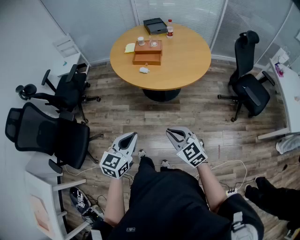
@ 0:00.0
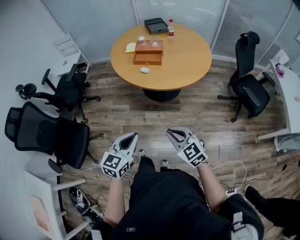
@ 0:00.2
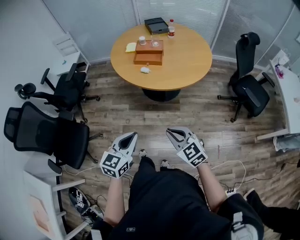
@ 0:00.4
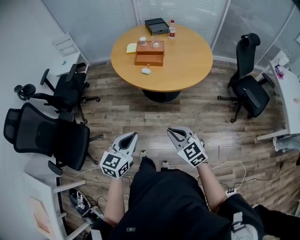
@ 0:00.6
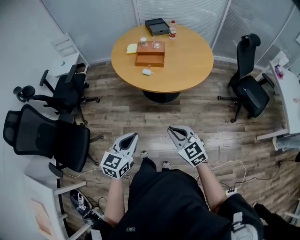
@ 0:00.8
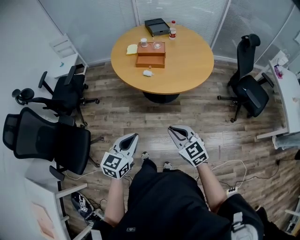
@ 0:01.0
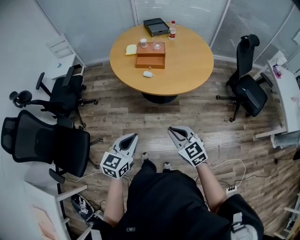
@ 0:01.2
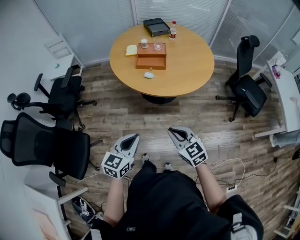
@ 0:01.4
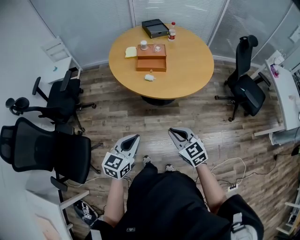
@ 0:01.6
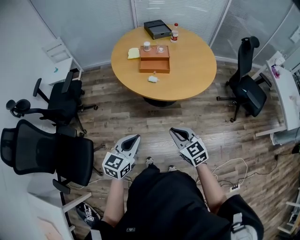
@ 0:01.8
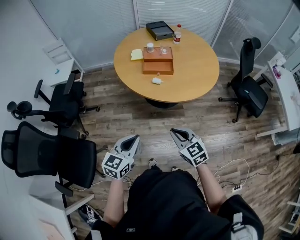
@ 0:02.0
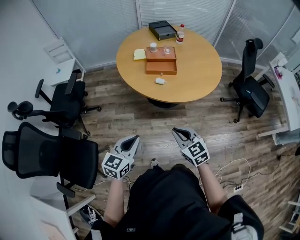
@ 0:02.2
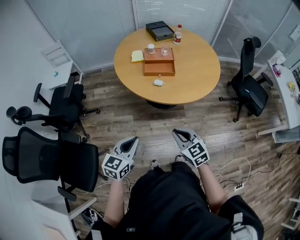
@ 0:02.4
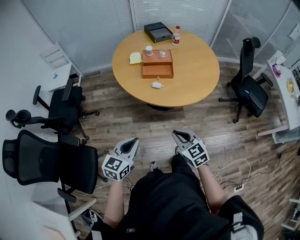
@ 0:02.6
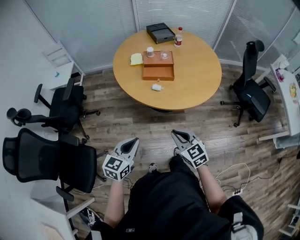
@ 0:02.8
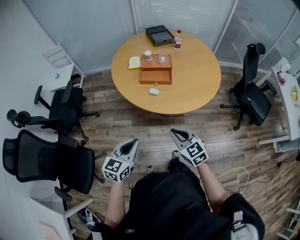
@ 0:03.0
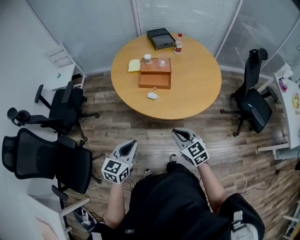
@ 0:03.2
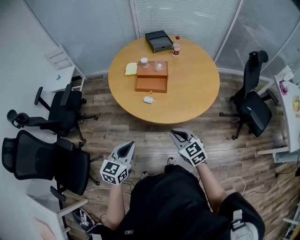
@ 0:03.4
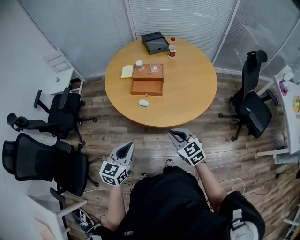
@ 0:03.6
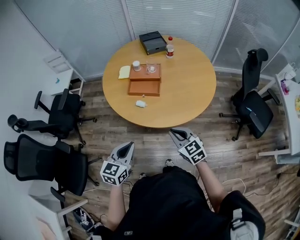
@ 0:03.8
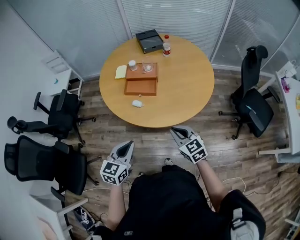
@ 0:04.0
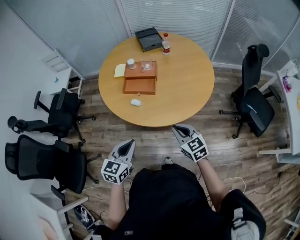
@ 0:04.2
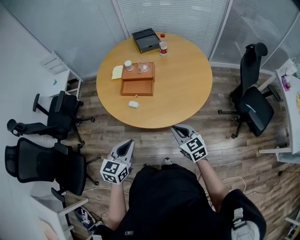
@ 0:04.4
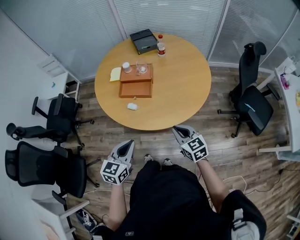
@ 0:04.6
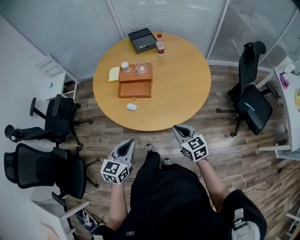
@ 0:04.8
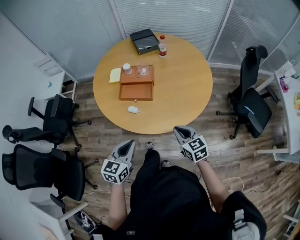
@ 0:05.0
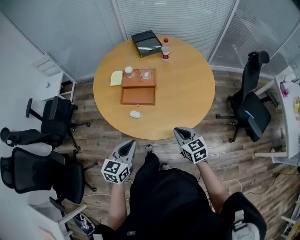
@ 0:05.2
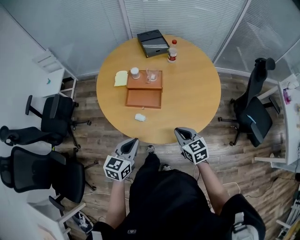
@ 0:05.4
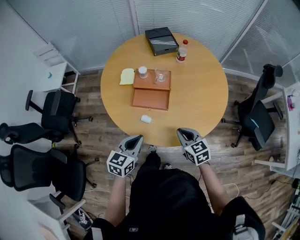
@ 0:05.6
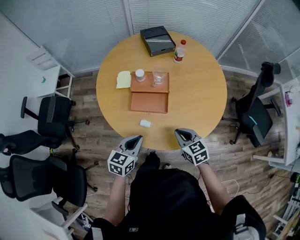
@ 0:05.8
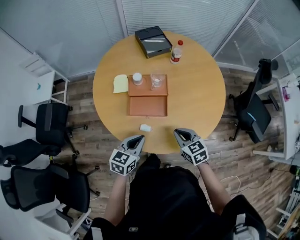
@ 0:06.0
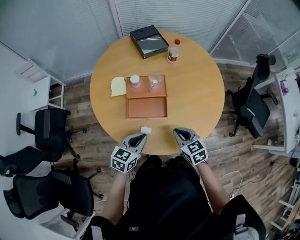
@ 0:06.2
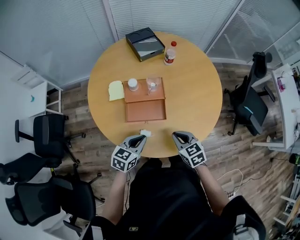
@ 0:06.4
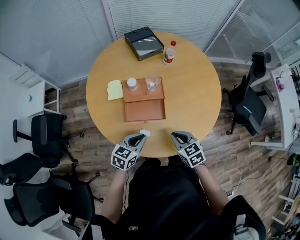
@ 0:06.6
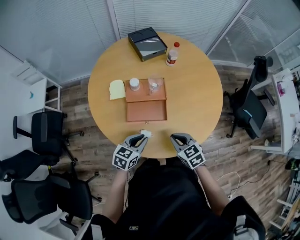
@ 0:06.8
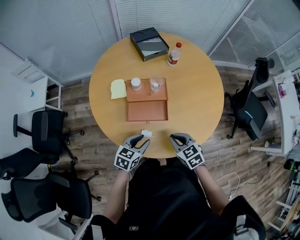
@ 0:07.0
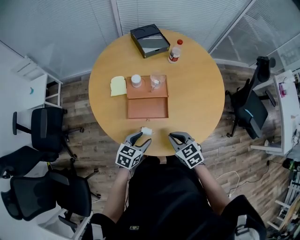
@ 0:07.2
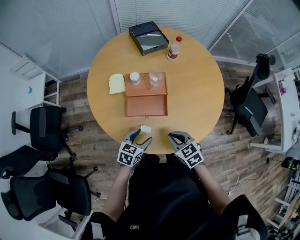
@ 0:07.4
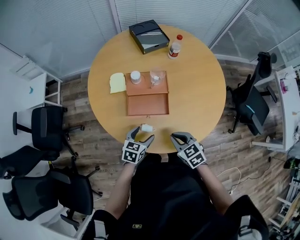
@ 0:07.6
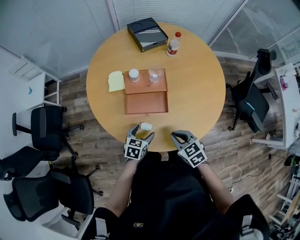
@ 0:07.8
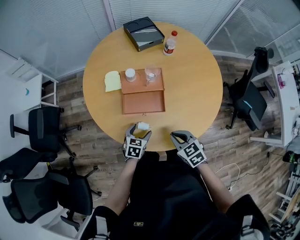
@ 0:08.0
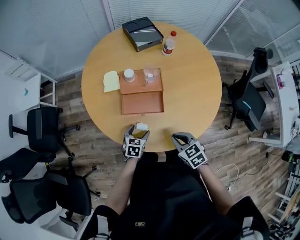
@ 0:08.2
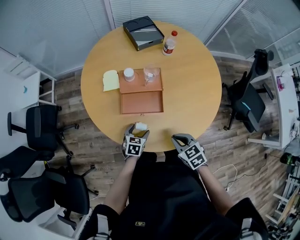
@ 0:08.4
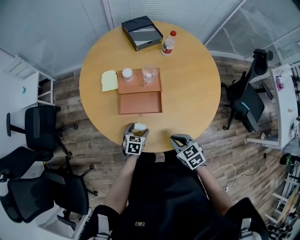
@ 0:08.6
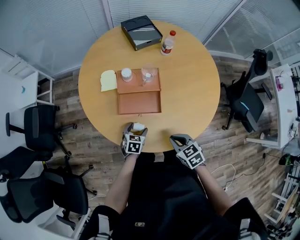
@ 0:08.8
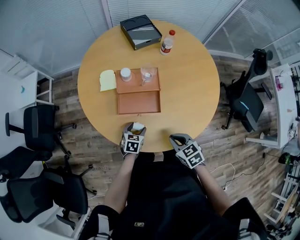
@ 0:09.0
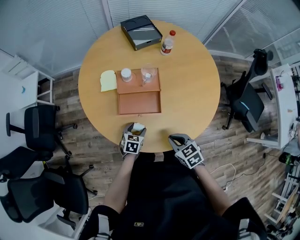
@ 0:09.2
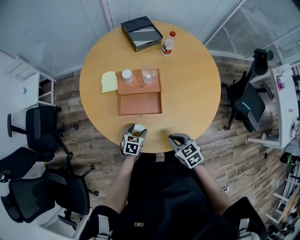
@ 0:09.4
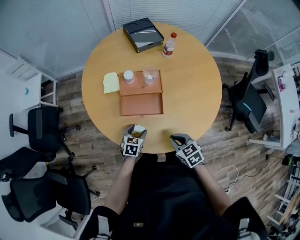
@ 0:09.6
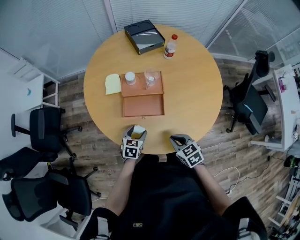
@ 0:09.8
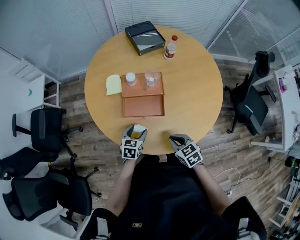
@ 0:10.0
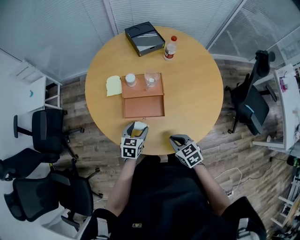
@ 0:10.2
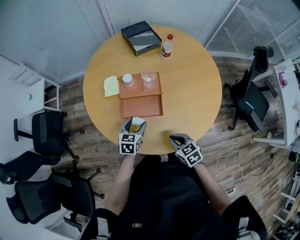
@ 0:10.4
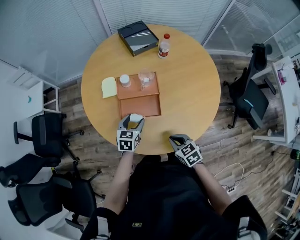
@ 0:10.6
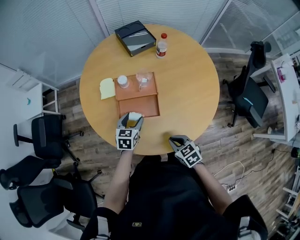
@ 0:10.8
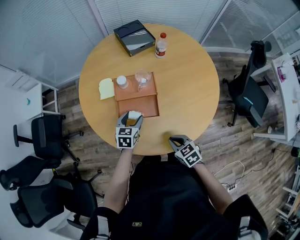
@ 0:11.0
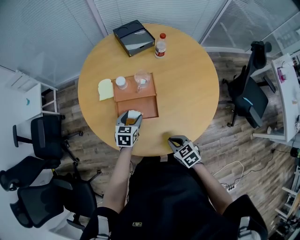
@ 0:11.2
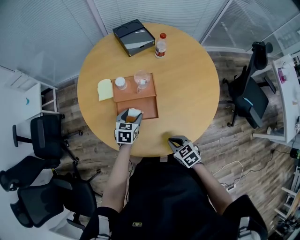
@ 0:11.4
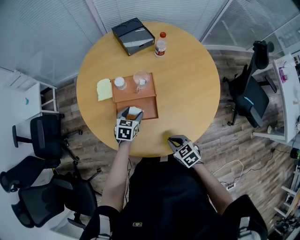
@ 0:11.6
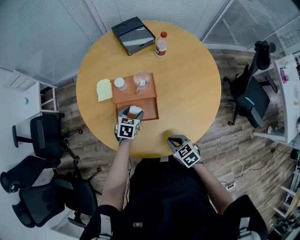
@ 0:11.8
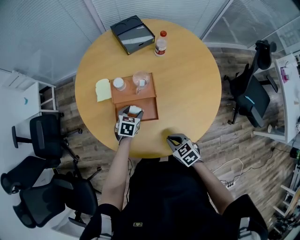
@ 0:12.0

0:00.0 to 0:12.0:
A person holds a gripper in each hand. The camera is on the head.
0:00.0 to 0:01.6: The grippers both shift forward and to the left by roughly 15 cm.
0:01.6 to 0:03.0: Both grippers move forward, about 10 cm.
0:03.0 to 0:04.4: The two grippers go some 20 cm to the right and forward.
0:04.4 to 0:06.0: The left gripper goes some 25 cm forward; the right gripper heads forward and to the left, covering about 20 cm.
0:06.0 to 0:07.6: The right gripper ends up approximately 5 cm from where it was. The left gripper is displaced downward by about 10 cm, and opens its fingers.
0:07.6 to 0:09.0: The left gripper travels downward by some 10 cm.
0:09.0 to 0:10.4: The left gripper travels upward by some 10 cm.
0:10.4 to 0:12.0: The left gripper shifts approximately 10 cm forward and downward.

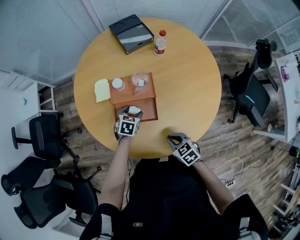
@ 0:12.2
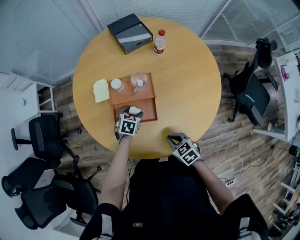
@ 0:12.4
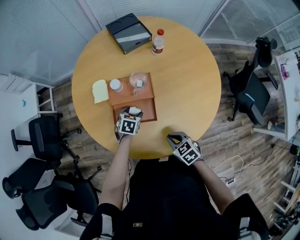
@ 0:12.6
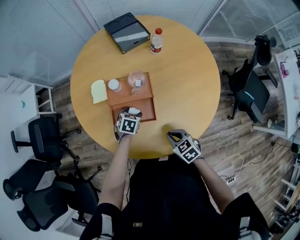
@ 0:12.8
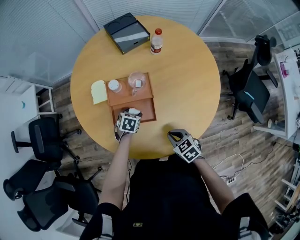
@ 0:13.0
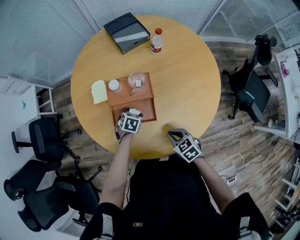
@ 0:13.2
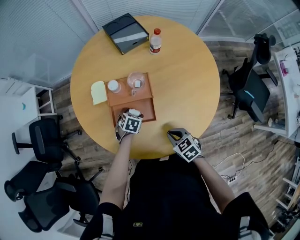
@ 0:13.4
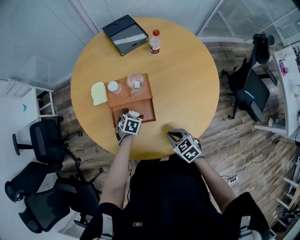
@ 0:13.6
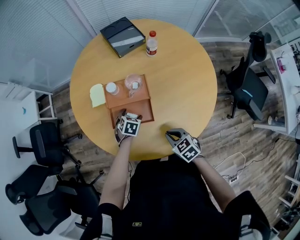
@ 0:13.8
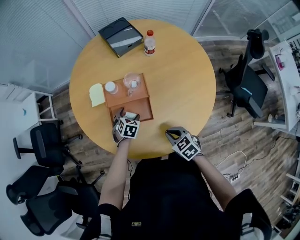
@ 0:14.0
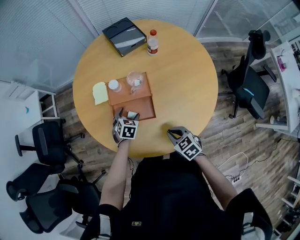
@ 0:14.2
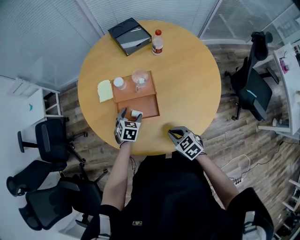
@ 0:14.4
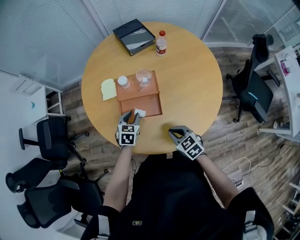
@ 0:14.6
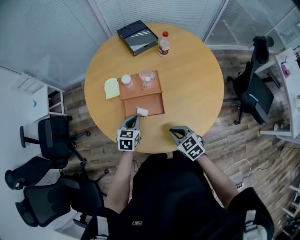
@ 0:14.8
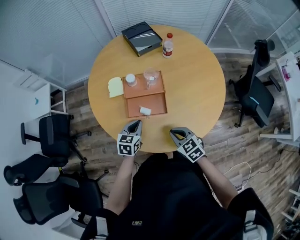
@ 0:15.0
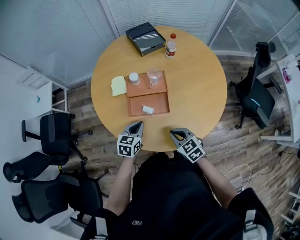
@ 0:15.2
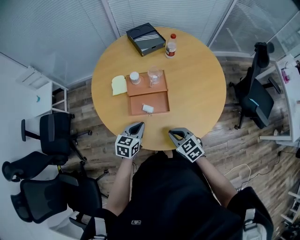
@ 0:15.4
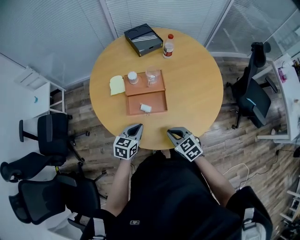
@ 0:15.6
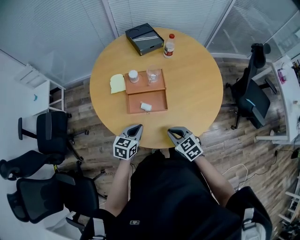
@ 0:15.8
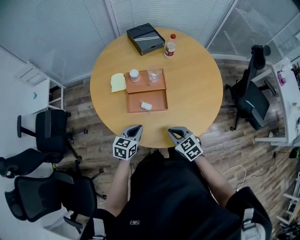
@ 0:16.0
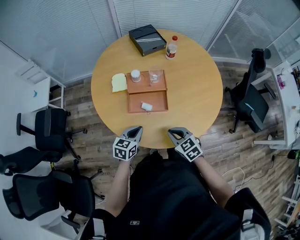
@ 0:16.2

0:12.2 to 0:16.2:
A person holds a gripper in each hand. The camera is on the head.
0:12.2 to 0:13.6: The grippers move only a little.
0:13.6 to 0:14.8: The left gripper is displaced upward, to the left and backward by roughly 15 cm, turns by about 30 degrees, and closes up. Meanwhile the right gripper moves approximately 5 cm.
0:14.8 to 0:16.2: The right gripper shifts by roughly 5 cm, while the left gripper is displaced backward by roughly 10 cm.

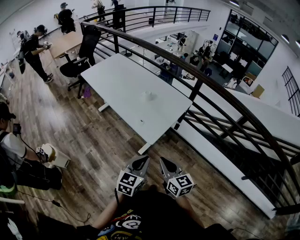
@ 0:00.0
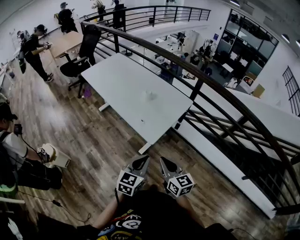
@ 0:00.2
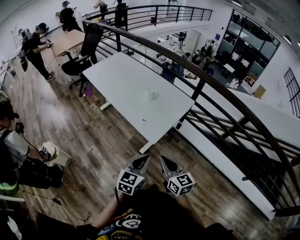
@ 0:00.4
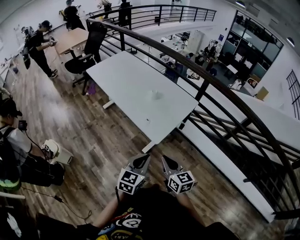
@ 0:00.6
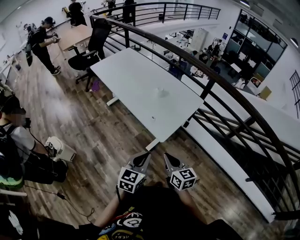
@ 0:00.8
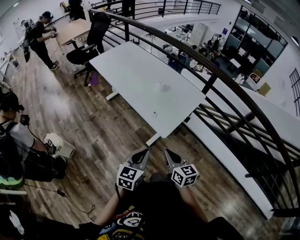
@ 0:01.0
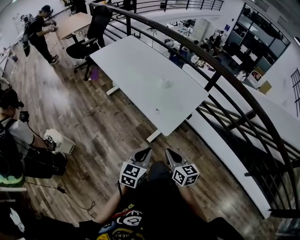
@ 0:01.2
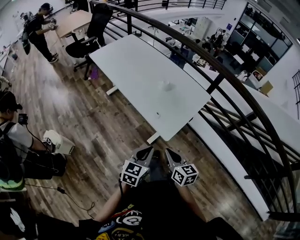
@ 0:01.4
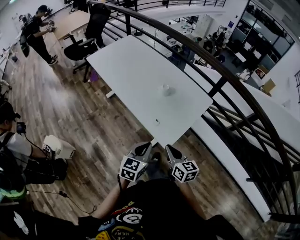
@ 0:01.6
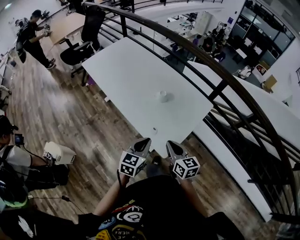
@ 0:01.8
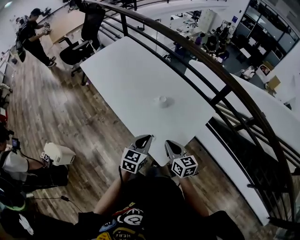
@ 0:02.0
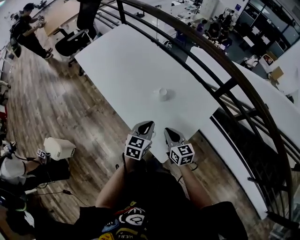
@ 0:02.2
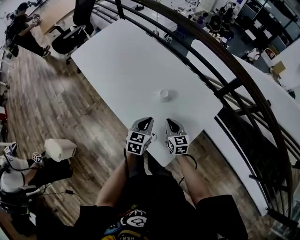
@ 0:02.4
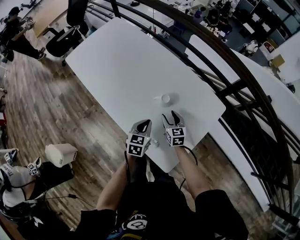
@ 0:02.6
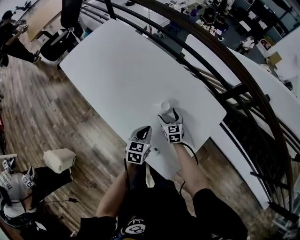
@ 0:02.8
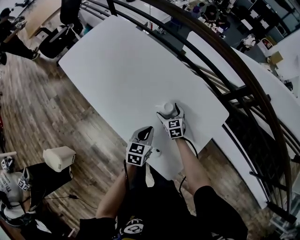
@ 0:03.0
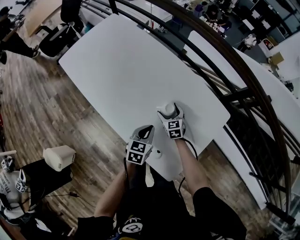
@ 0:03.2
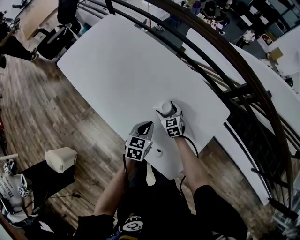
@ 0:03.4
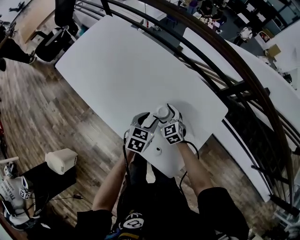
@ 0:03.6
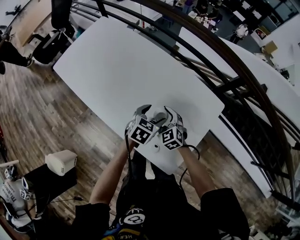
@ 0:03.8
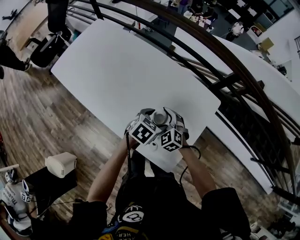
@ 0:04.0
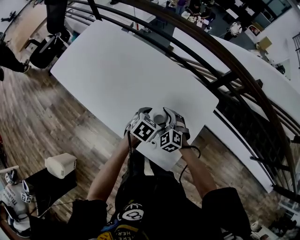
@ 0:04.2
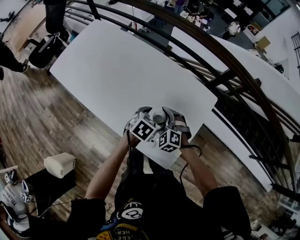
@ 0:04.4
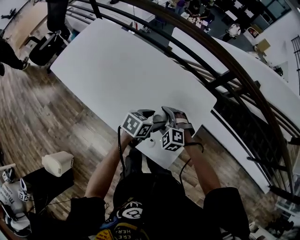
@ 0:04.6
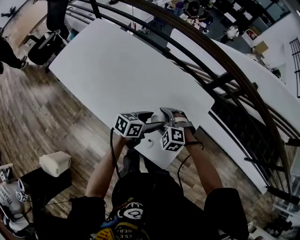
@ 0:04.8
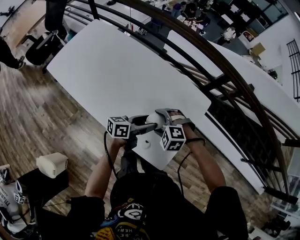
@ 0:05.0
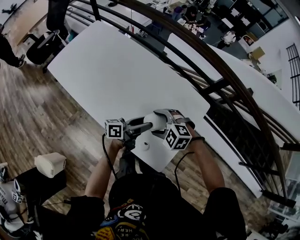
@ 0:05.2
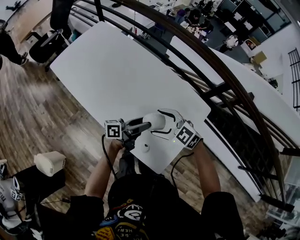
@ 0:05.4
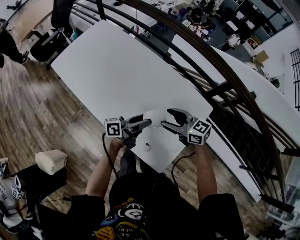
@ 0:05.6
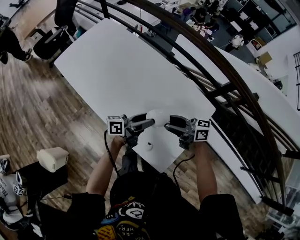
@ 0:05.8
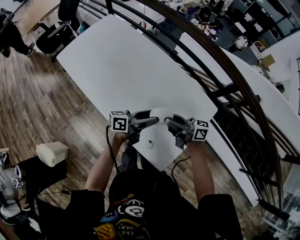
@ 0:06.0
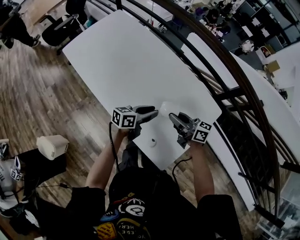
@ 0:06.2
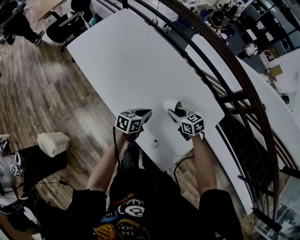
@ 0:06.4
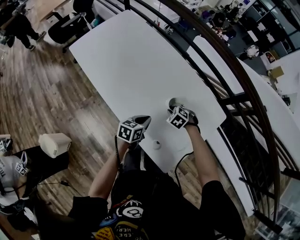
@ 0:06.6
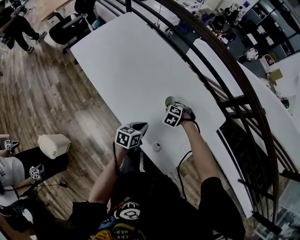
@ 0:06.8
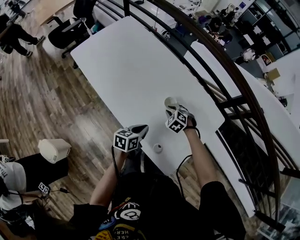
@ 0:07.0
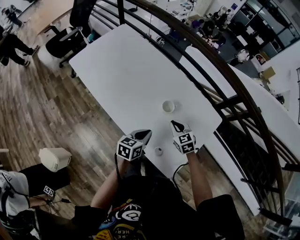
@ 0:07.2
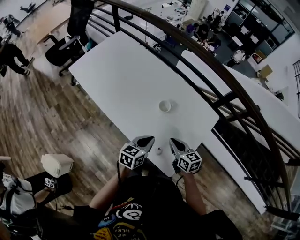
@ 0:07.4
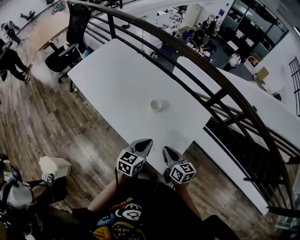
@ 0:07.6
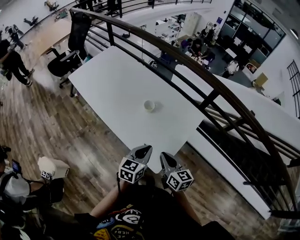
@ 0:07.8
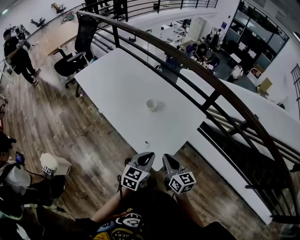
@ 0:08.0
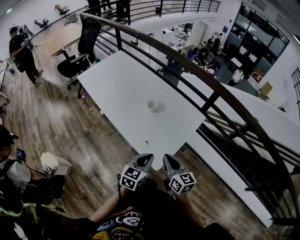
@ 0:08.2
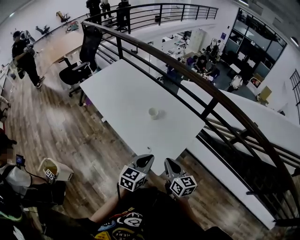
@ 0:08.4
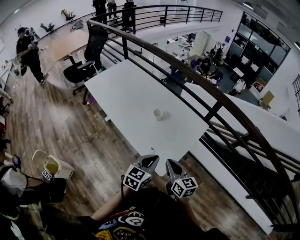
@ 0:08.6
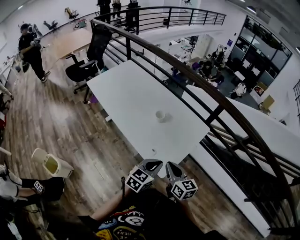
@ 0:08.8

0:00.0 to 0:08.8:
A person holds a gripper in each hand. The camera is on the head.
0:00.0 to 0:01.4: The right gripper heads forward, downward and to the left, covering approximately 10 cm. Meanwhile the left gripper goes some 10 cm to the left, forward and downward.
0:01.4 to 0:03.0: Both grippers are carried forward, approximately 50 cm. The right gripper moves downward, about 25 cm, rotates some 30 degrees, and opens up.
0:03.0 to 0:04.4: The right gripper goes some 15 cm upward and backward, and swivels about 40 degrees; the left gripper is displaced to the right and upward by some 10 cm, changes its angle by approximately 40 degrees, and opens.
0:04.4 to 0:05.8: The right gripper shifts about 15 cm upward, angles its fingers upward, by some 50 degrees, and closes its fingers. The left gripper heads upward, covering some 5 cm, and points its fingers roughly 60 degrees further upward.
0:05.8 to 0:07.4: The left gripper travels downward and back again, about 10 cm each way, tips its fingers downward by about 30 degrees, and closes, while the right gripper moves roughly 25 cm downward and comes back, changes its angle by approximately 40 degrees, and closes up.
0:07.4 to 0:08.8: The left gripper is displaced backward, to the right and upward by some 25 cm. Meanwhile the right gripper heads backward and upward, covering roughly 25 cm.
